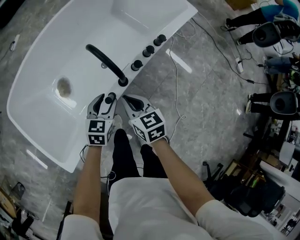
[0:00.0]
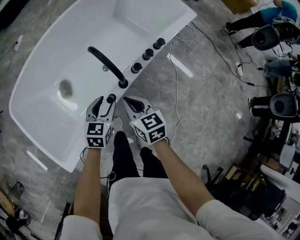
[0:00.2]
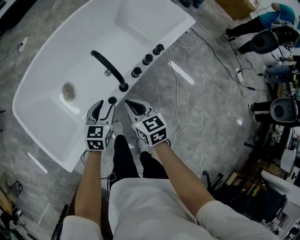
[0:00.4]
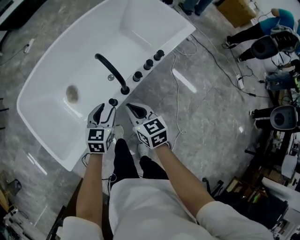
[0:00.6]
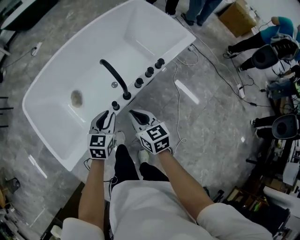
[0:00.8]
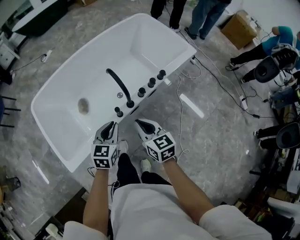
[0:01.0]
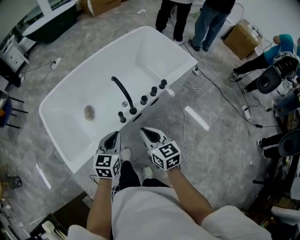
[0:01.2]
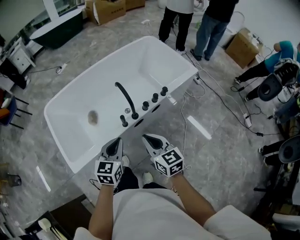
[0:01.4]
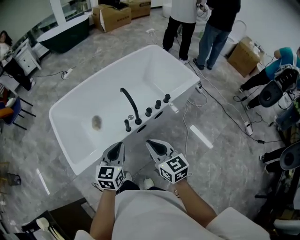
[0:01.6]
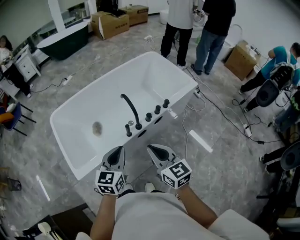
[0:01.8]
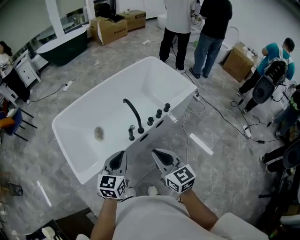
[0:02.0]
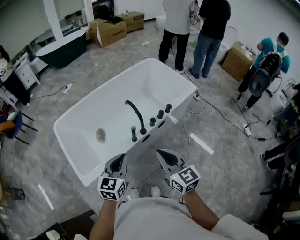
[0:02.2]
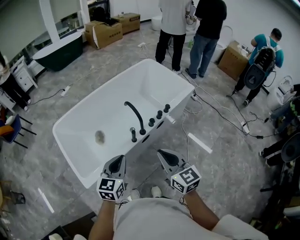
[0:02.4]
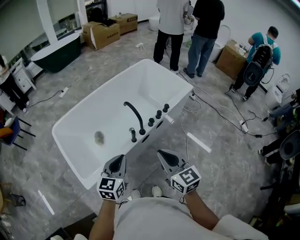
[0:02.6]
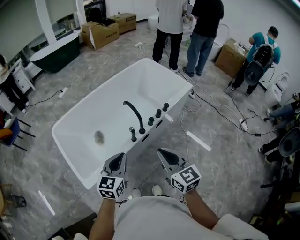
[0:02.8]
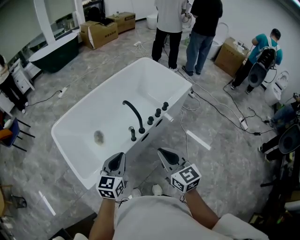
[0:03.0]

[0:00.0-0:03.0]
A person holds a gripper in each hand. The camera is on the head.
0:00.0 to 0:01.6: Both grippers travel together upward and backward, roughly 30 cm. The right gripper changes its angle by some 20 degrees; the left gripper turns by approximately 30 degrees, and closes.
0:01.6 to 0:03.0: The left gripper moves to the left, about 5 cm. The right gripper goes about 5 cm upward.

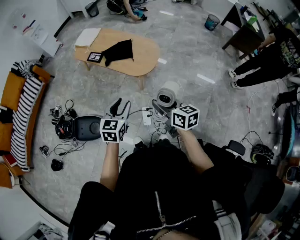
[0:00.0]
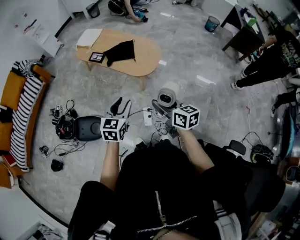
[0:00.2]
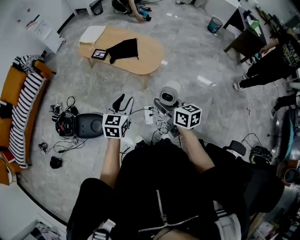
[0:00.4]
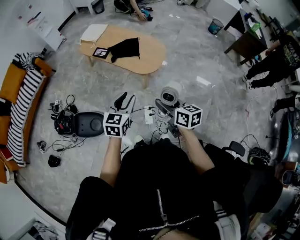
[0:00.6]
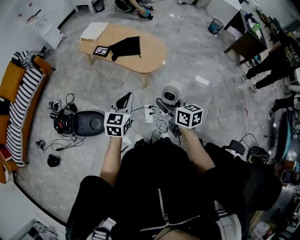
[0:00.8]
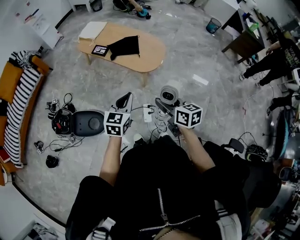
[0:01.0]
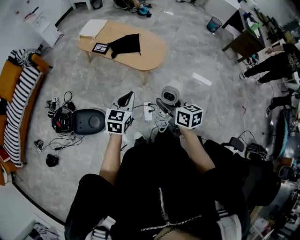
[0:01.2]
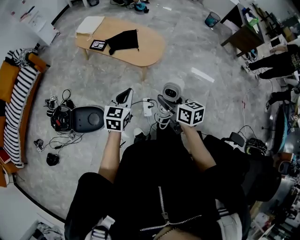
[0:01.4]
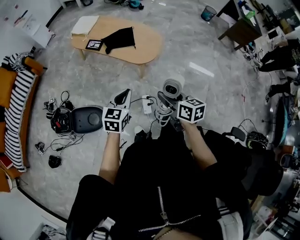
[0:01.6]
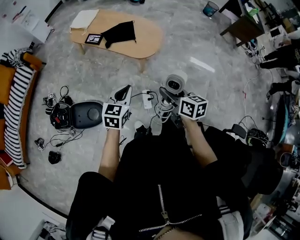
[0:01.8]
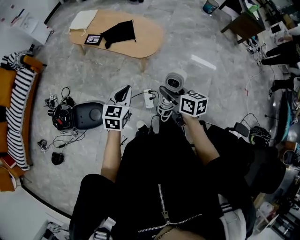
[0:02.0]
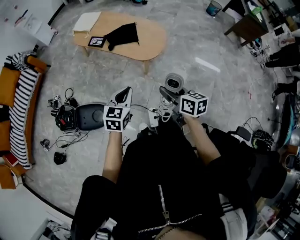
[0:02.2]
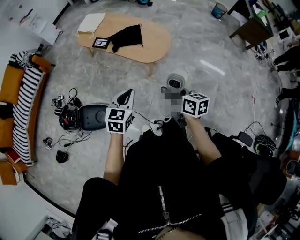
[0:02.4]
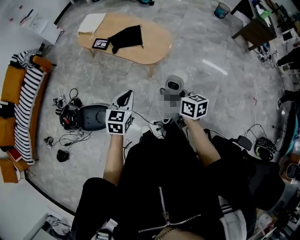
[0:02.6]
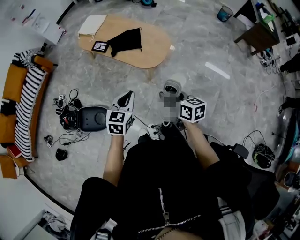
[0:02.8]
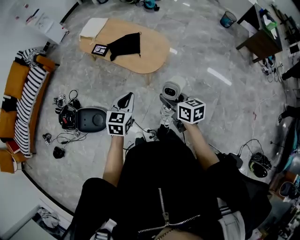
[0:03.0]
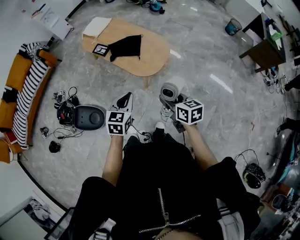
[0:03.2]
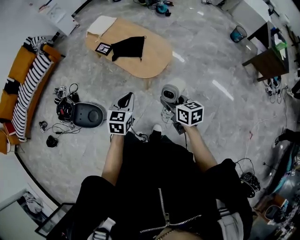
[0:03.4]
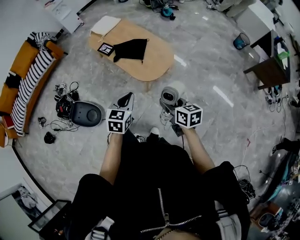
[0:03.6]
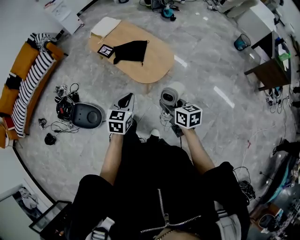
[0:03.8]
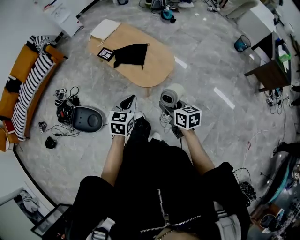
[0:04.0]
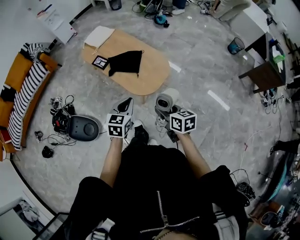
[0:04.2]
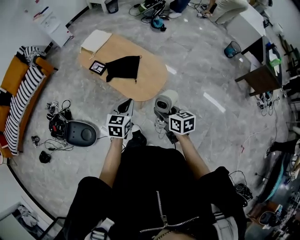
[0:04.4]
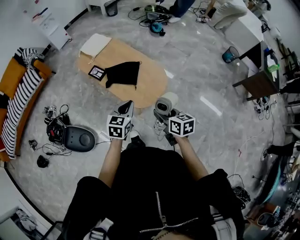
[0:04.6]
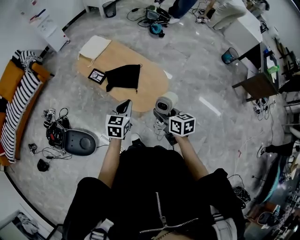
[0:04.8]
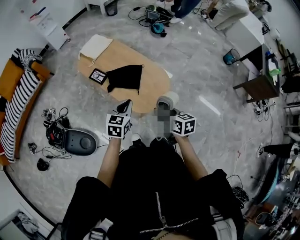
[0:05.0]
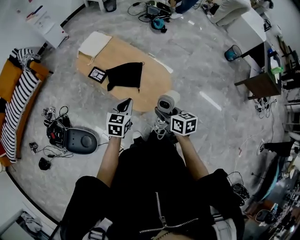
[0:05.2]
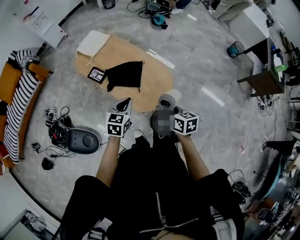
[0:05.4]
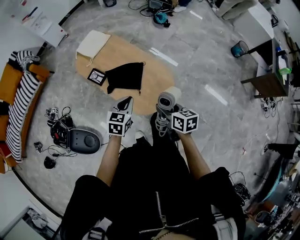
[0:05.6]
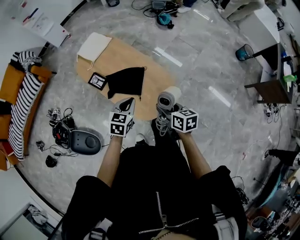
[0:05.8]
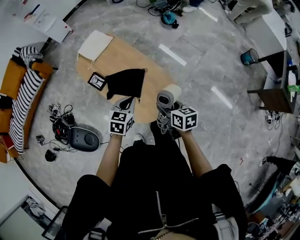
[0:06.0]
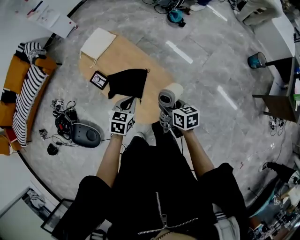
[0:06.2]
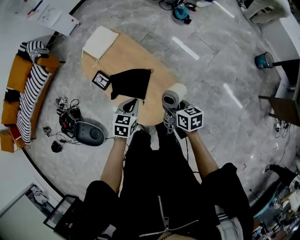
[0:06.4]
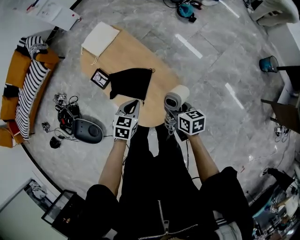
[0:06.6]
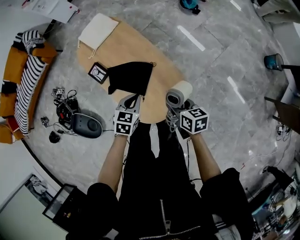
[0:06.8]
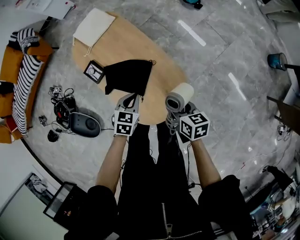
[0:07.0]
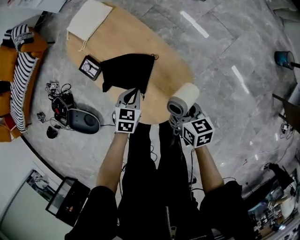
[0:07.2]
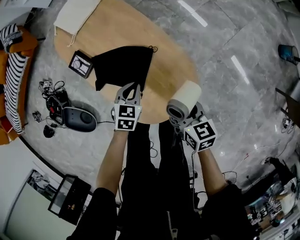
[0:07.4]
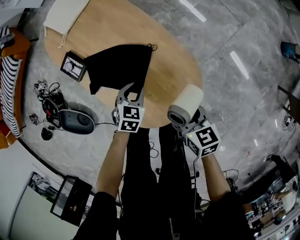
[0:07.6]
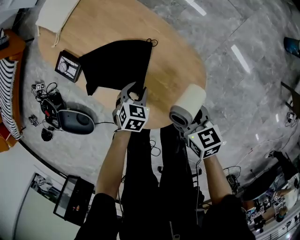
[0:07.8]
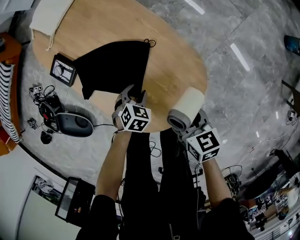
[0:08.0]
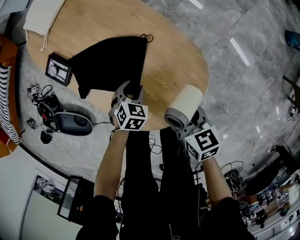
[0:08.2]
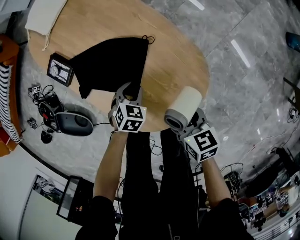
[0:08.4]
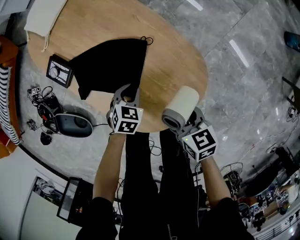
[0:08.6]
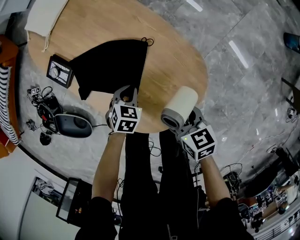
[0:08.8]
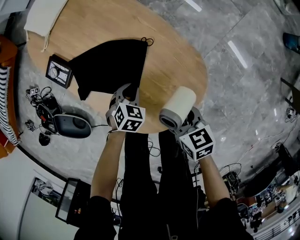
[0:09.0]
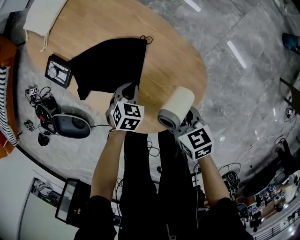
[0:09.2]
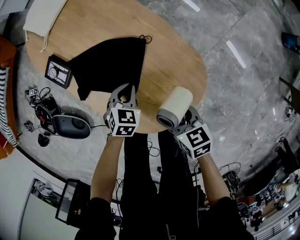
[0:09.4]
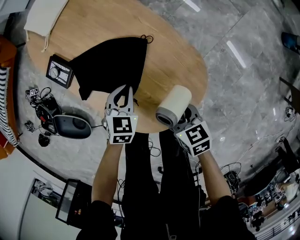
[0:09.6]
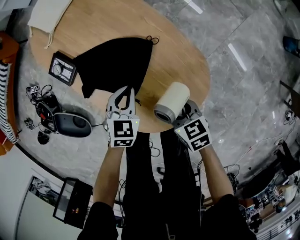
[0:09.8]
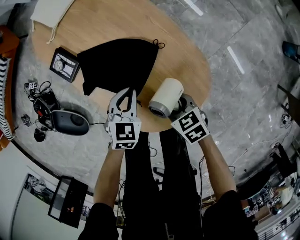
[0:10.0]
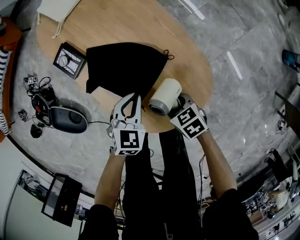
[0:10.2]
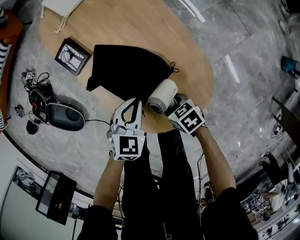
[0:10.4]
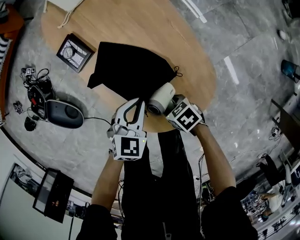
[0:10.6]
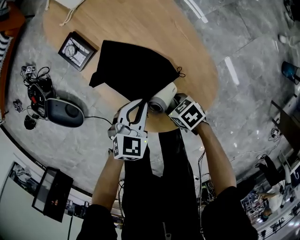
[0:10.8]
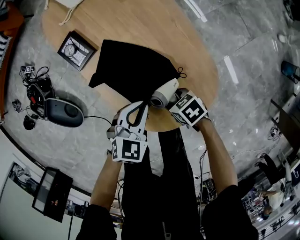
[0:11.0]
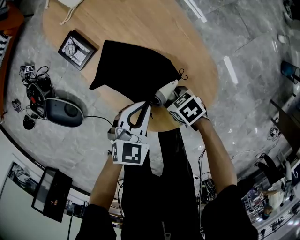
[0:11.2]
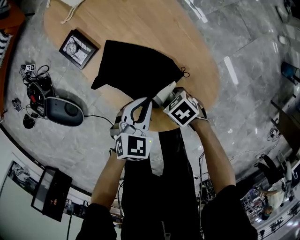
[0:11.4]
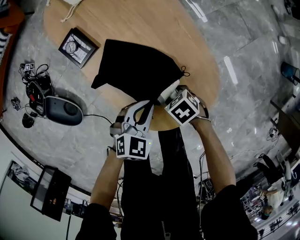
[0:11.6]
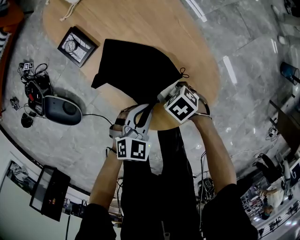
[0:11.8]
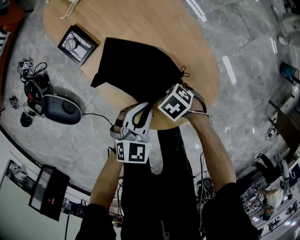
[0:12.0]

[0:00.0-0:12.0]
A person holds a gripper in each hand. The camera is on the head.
0:00.0 to 0:01.6: Both grippers move to the left, about 5 cm. The left gripper closes.
0:01.6 to 0:03.0: The two grippers go some 15 cm to the right and forward.
0:03.0 to 0:04.4: The two grippers go approximately 15 cm forward and to the right.
0:04.4 to 0:06.0: Both grippers travel together forward, roughly 25 cm.
0:06.0 to 0:07.6: Both grippers move downward, about 30 cm. The left gripper opens its fingers.
0:07.6 to 0:09.0: Both grippers travel together downward, roughly 10 cm.
0:09.0 to 0:10.4: The left gripper is displaced upward by some 15 cm, and rotates roughly 30 degrees. The right gripper changes place by about 10 cm, and rotates some 40 degrees.
0:10.4 to 0:12.0: The right gripper rotates about 30 degrees.

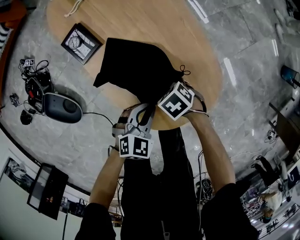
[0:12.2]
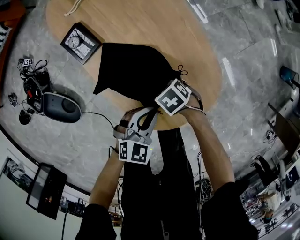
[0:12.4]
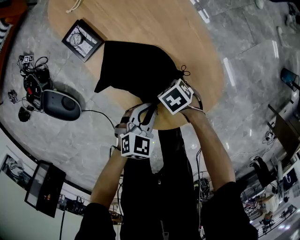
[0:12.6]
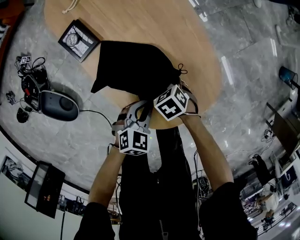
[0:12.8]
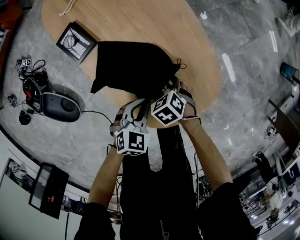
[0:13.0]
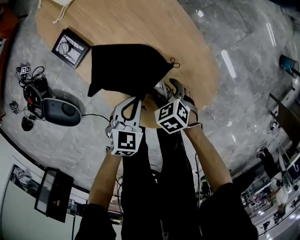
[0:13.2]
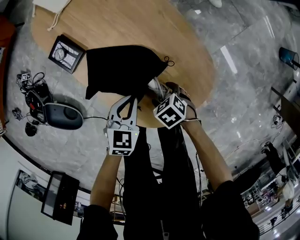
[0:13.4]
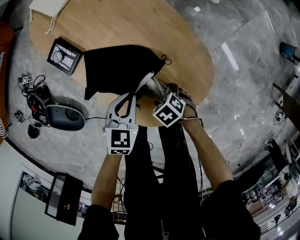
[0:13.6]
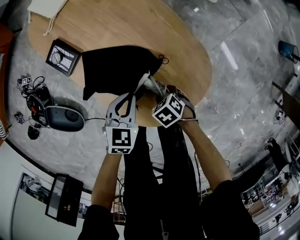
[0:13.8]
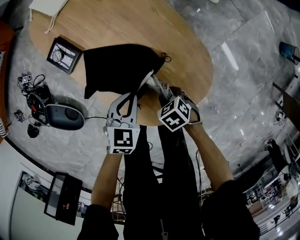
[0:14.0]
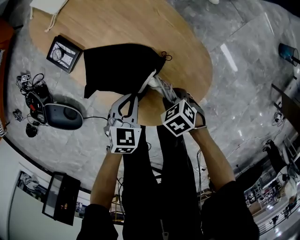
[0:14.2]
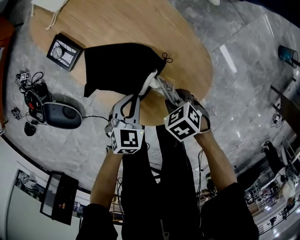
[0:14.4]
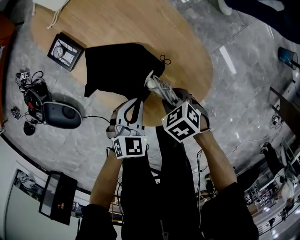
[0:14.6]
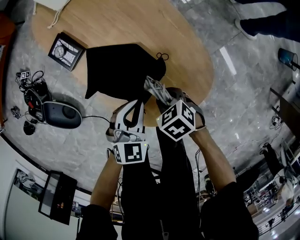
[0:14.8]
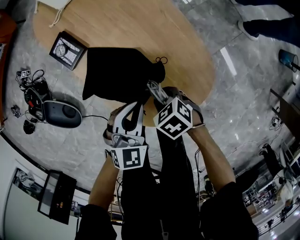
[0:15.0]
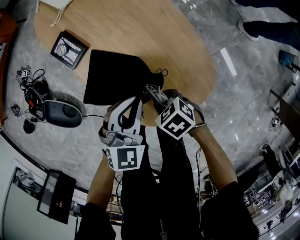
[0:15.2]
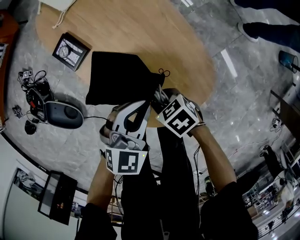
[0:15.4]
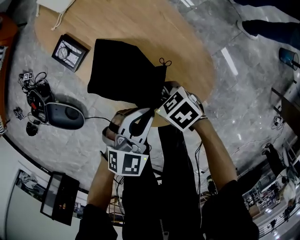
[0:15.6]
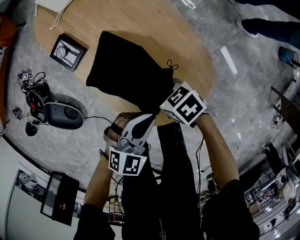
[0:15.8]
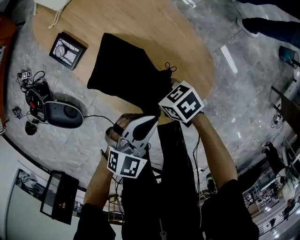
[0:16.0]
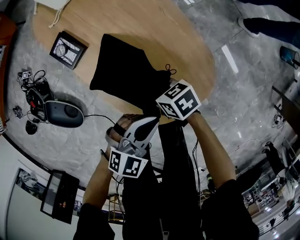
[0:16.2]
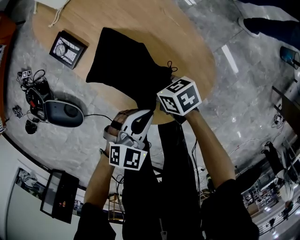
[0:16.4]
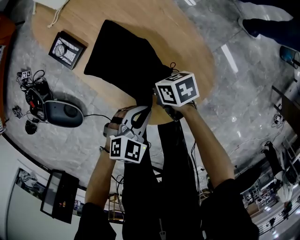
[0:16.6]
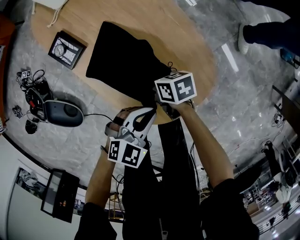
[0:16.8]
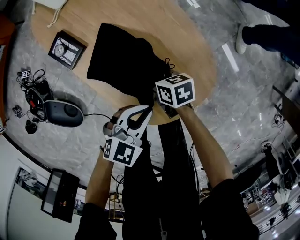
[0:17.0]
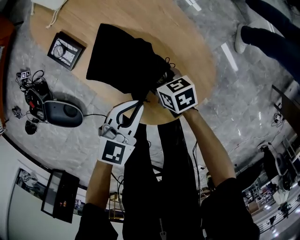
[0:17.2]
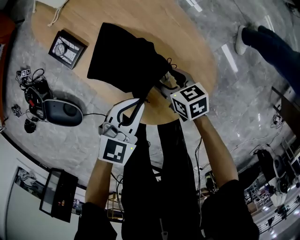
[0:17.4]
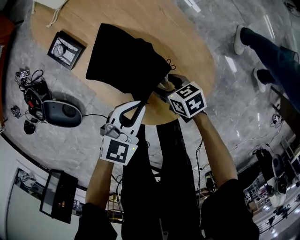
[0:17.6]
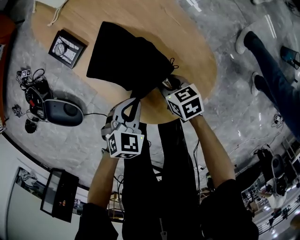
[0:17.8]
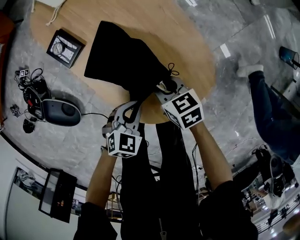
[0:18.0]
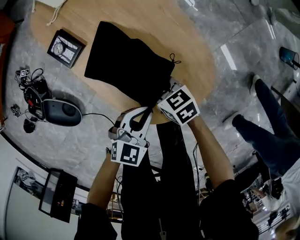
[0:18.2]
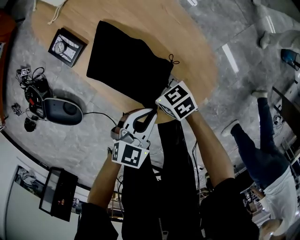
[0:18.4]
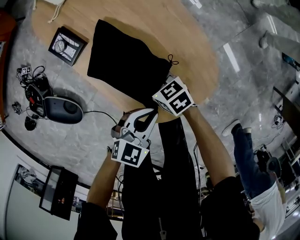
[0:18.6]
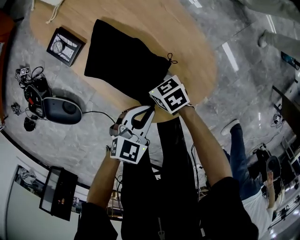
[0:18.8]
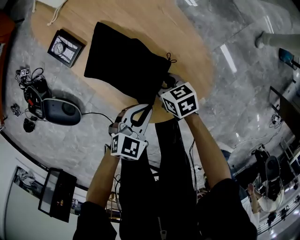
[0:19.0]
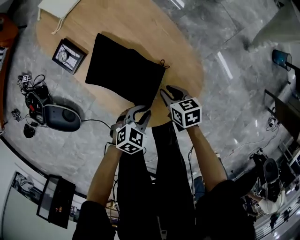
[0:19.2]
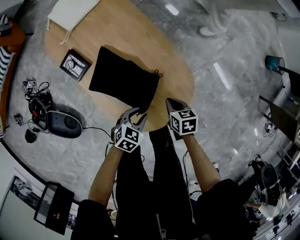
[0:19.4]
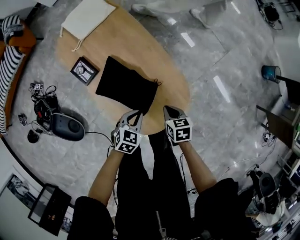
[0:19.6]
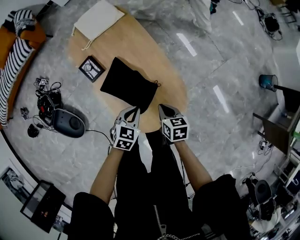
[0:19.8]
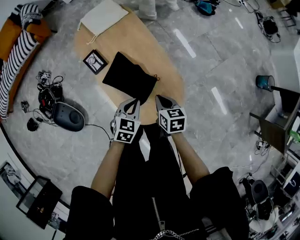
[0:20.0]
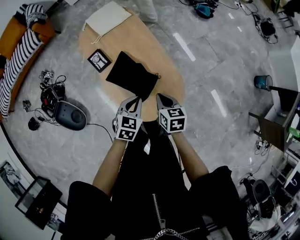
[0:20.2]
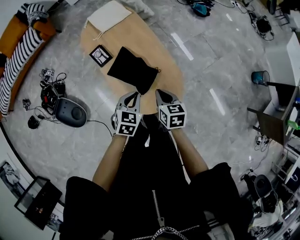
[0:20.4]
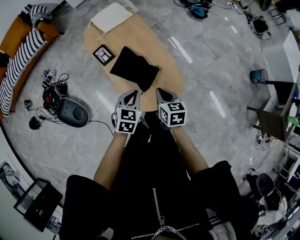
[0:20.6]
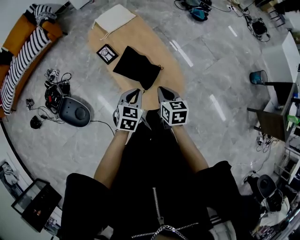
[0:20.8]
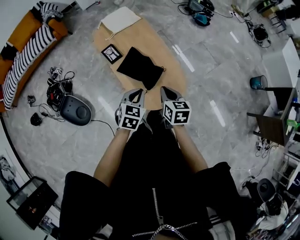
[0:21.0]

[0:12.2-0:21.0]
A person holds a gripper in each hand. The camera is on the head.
0:12.2 to 0:13.6: The right gripper ends up approximately 10 cm from where it was, and opens up.
0:13.6 to 0:15.2: Both grippers travel together upward, roughly 10 cm. The left gripper changes its angle by roughly 20 degrees. Meanwhile the right gripper closes up.
0:15.2 to 0:16.6: The left gripper moves approximately 10 cm, and rotates about 30 degrees. The right gripper ends up approximately 10 cm from where it was, and rotates approximately 40 degrees.
0:16.6 to 0:18.0: The right gripper changes its angle by about 20 degrees, and opens, then closes once more.
0:18.0 to 0:19.6: The left gripper goes up and down, some 5 cm each way, reversing 2 times, and opens, then closes once more; the right gripper changes place by approximately 15 cm, and changes its angle by approximately 20 degrees.
0:19.6 to 0:21.0: Both grippers travel together upward and backward, approximately 25 cm. The left gripper rotates about 20 degrees, while the right gripper changes its angle by about 20 degrees.
